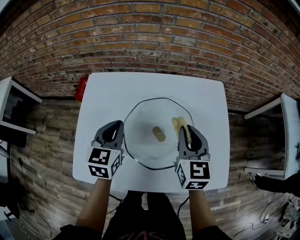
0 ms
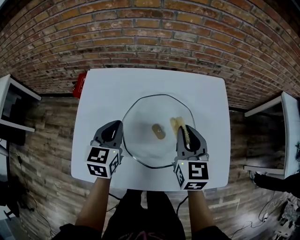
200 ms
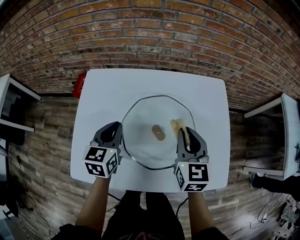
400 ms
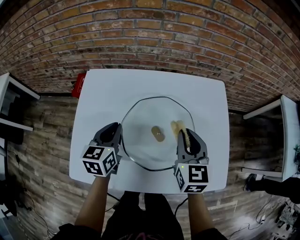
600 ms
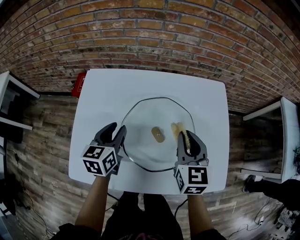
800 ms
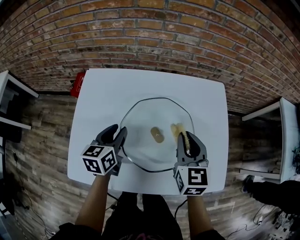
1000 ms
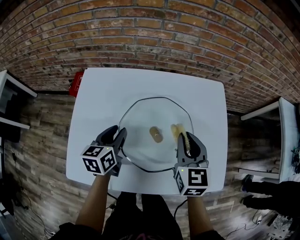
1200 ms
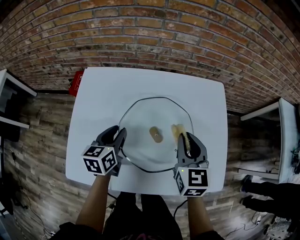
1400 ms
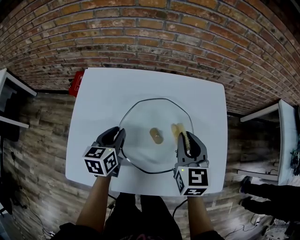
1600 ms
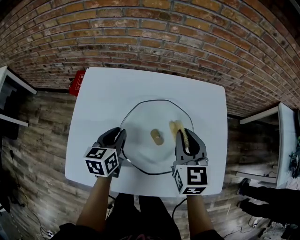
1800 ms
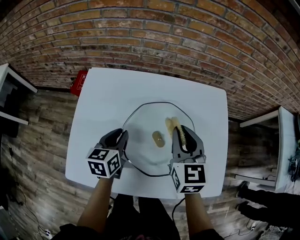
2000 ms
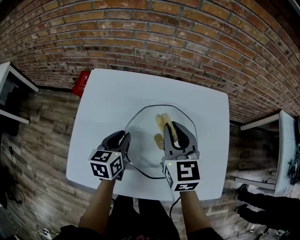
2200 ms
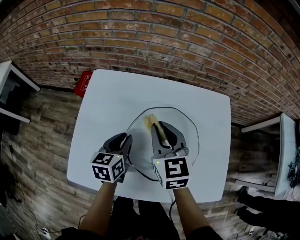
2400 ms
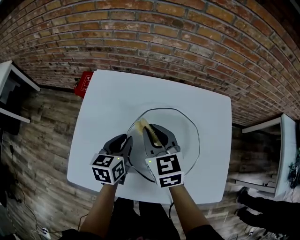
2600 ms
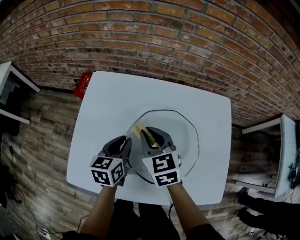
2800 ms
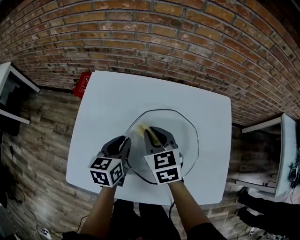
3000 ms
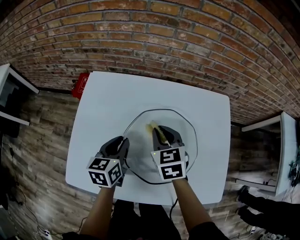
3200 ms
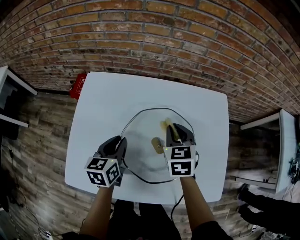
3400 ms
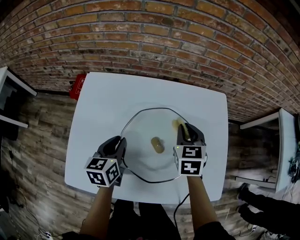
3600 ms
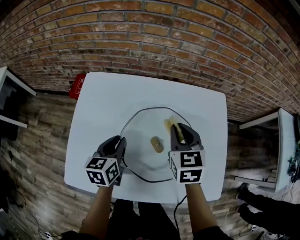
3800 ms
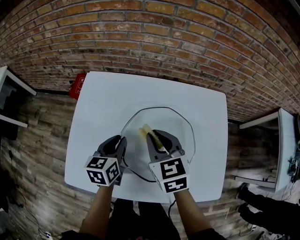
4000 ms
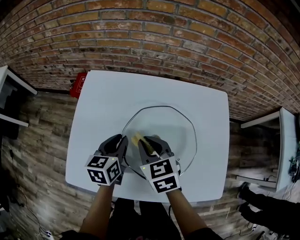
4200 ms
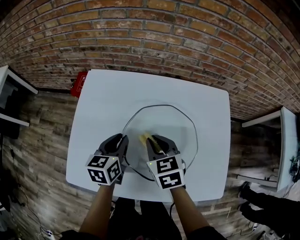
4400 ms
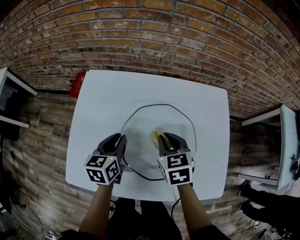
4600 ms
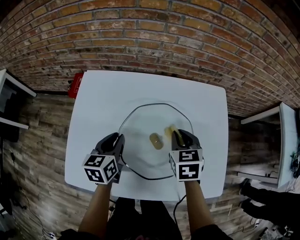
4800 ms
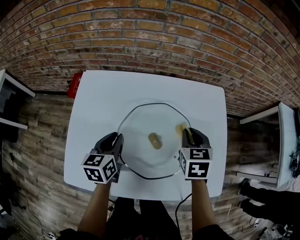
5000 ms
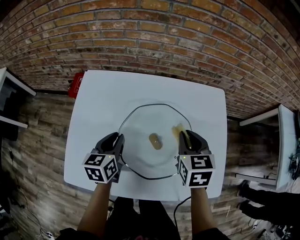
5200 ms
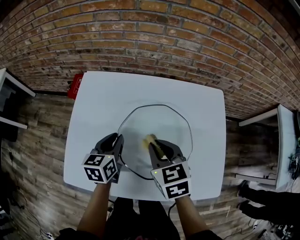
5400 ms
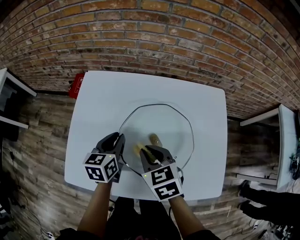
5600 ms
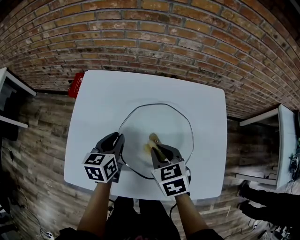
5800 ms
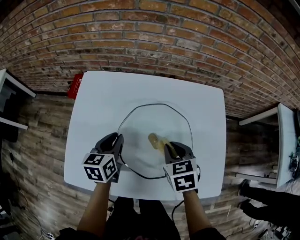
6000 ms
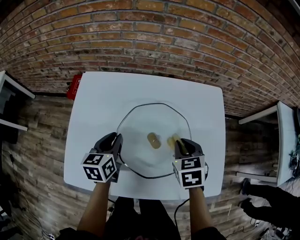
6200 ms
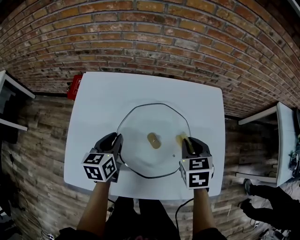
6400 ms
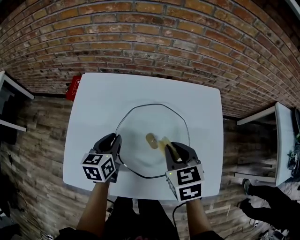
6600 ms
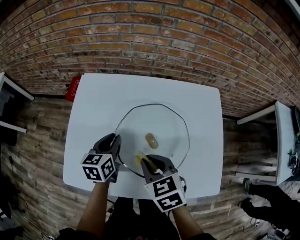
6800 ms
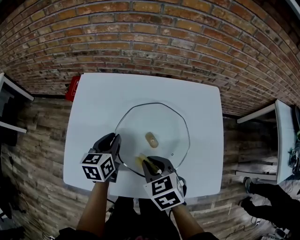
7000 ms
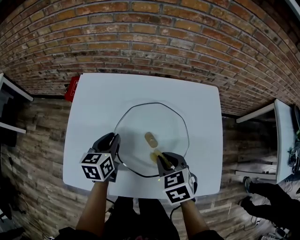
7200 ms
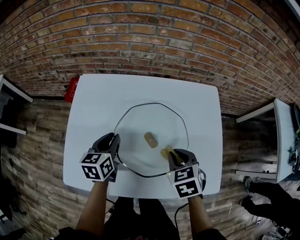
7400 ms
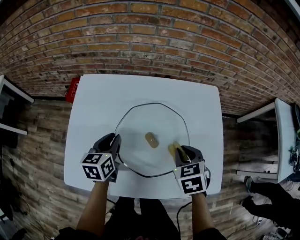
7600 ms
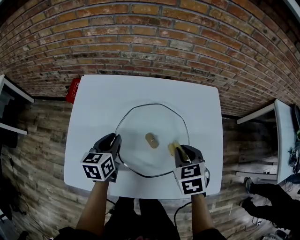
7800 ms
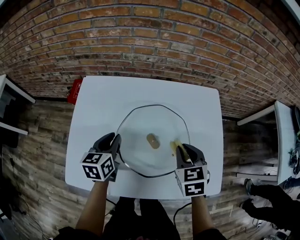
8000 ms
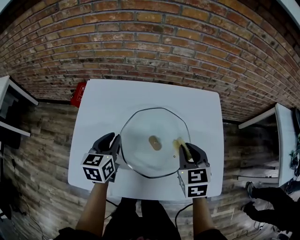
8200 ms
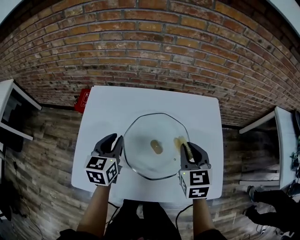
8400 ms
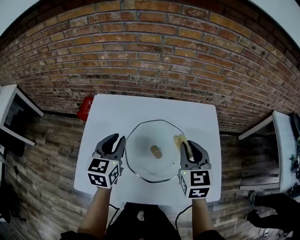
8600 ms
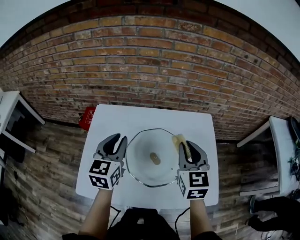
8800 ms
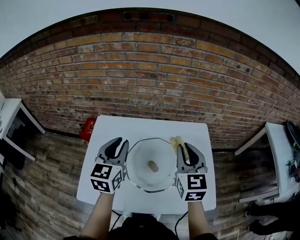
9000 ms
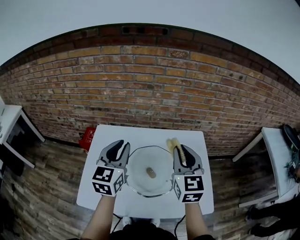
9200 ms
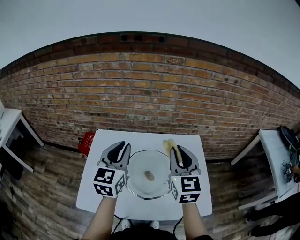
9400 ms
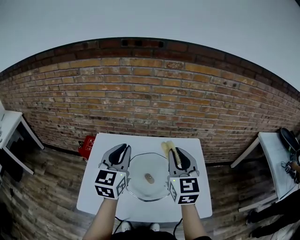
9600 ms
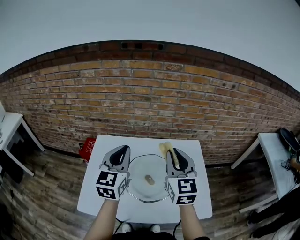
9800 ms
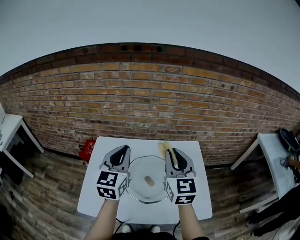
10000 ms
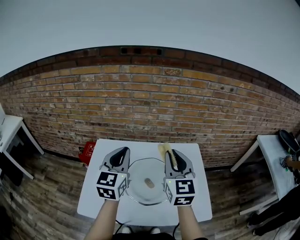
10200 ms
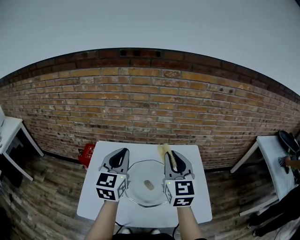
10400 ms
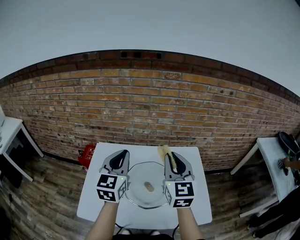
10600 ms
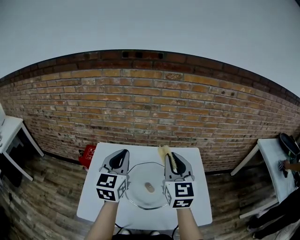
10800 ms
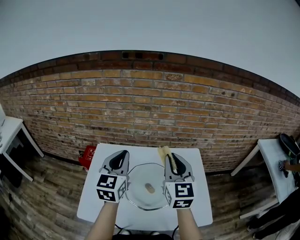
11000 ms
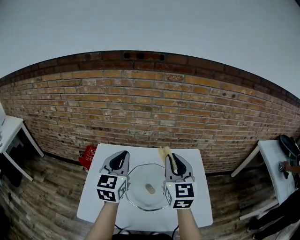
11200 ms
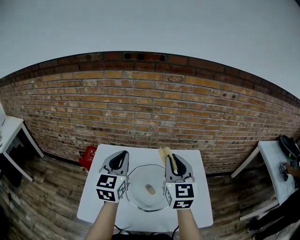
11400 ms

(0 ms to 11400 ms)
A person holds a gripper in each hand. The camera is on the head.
0 ms - 1400 ms: The left gripper travels downward by roughly 10 cm, rotates roughly 20 degrees, and opens up.
1400 ms - 2800 ms: The right gripper moves to the left, approximately 15 cm, and rotates about 30 degrees.
2800 ms - 4200 ms: The right gripper moves about 15 cm to the right and comes back.
4200 ms - 5600 ms: The right gripper goes to the right and returns, approximately 20 cm each way.
5600 ms - 7200 ms: The right gripper goes left and right, roughly 15 cm each way, reversing 2 times.
7200 ms - 8600 ms: The left gripper shifts some 15 cm upward, and rotates some 20 degrees, while the right gripper goes about 15 cm upward, forward and to the right, and angles its fingers upward, by approximately 30 degrees.
8600 ms - 10000 ms: Both grippers travel together upward, roughly 15 cm. The right gripper rotates approximately 20 degrees.
10000 ms - 11400 ms: There are only small adjustments of the grippers.

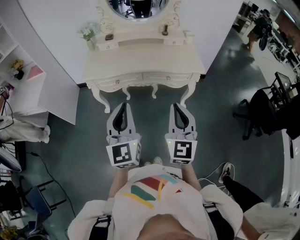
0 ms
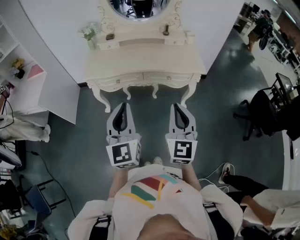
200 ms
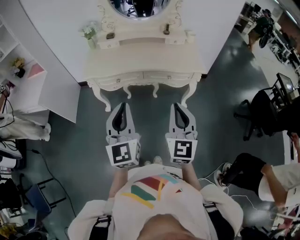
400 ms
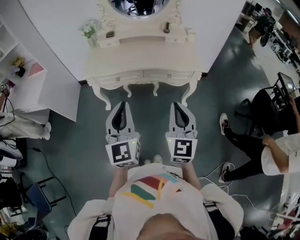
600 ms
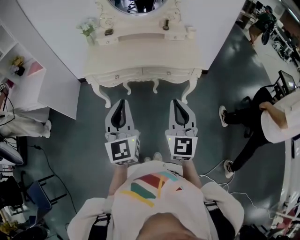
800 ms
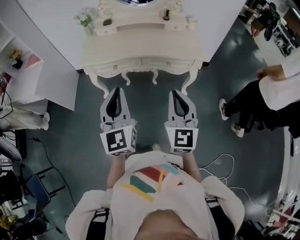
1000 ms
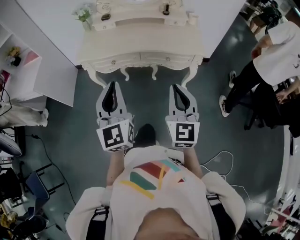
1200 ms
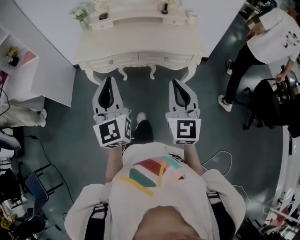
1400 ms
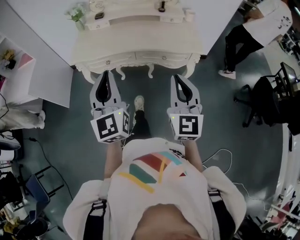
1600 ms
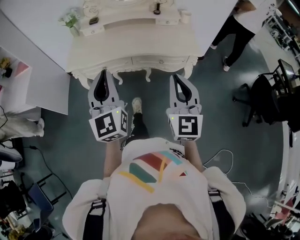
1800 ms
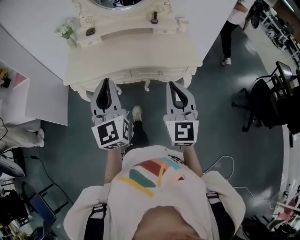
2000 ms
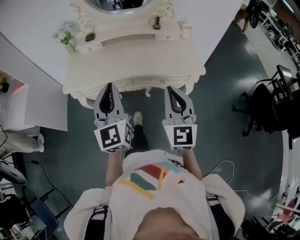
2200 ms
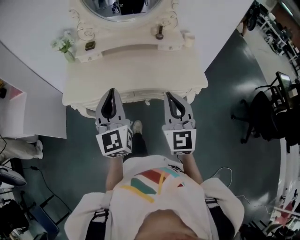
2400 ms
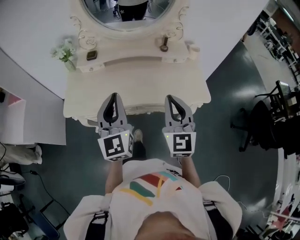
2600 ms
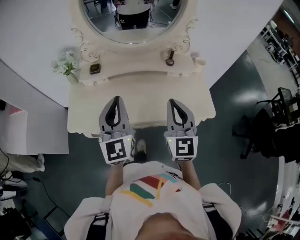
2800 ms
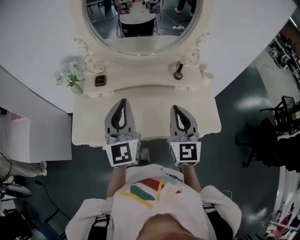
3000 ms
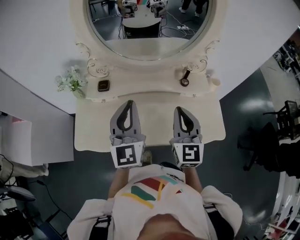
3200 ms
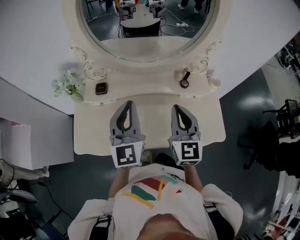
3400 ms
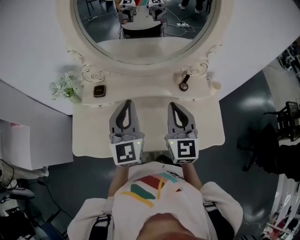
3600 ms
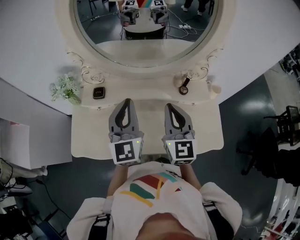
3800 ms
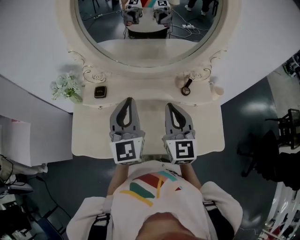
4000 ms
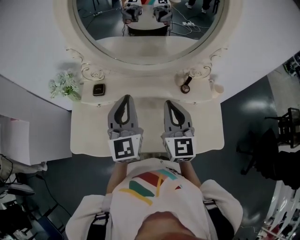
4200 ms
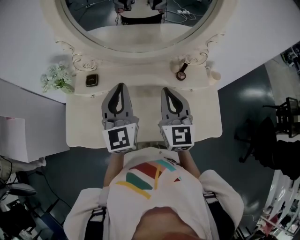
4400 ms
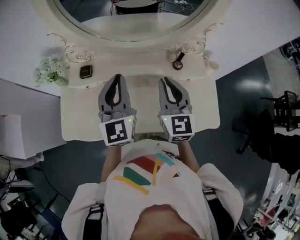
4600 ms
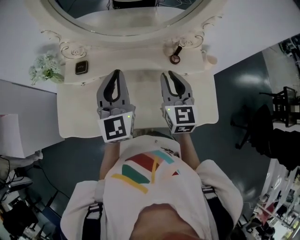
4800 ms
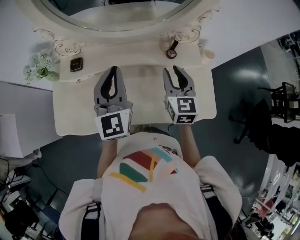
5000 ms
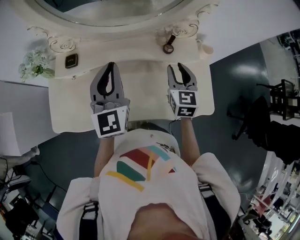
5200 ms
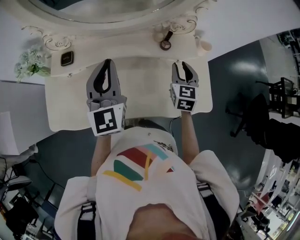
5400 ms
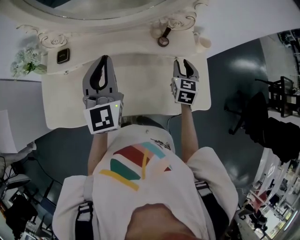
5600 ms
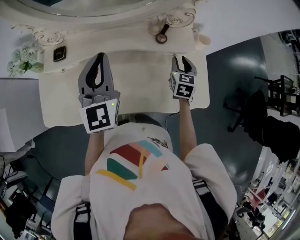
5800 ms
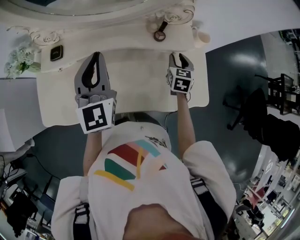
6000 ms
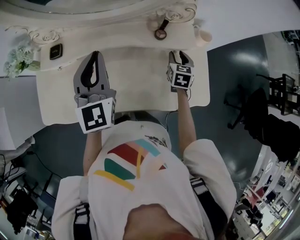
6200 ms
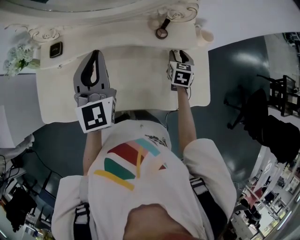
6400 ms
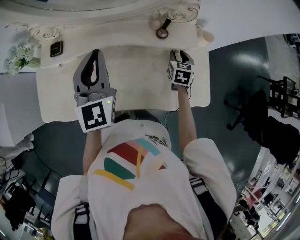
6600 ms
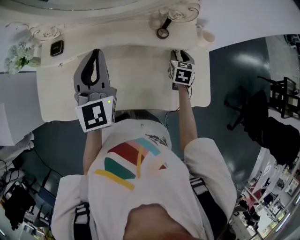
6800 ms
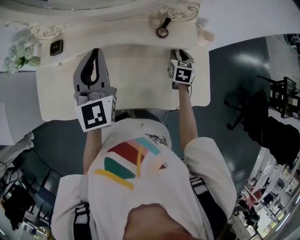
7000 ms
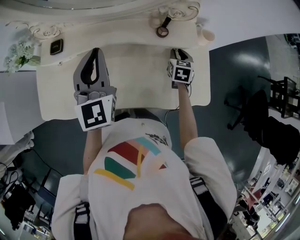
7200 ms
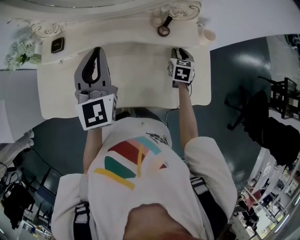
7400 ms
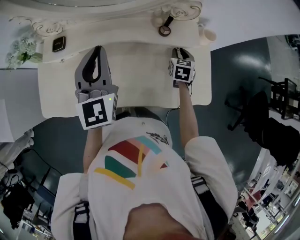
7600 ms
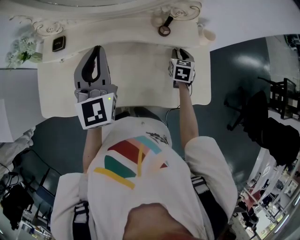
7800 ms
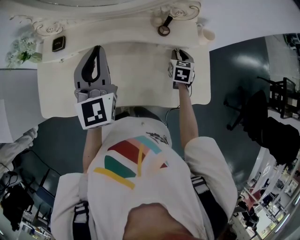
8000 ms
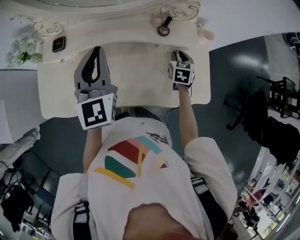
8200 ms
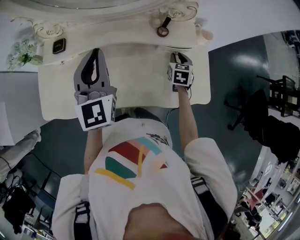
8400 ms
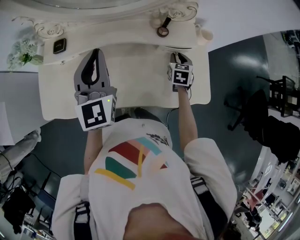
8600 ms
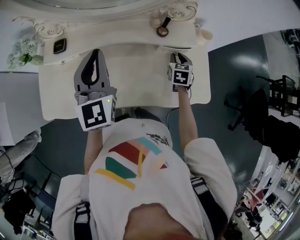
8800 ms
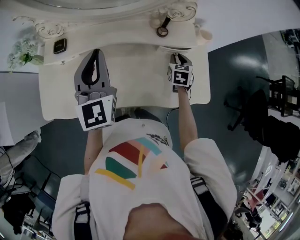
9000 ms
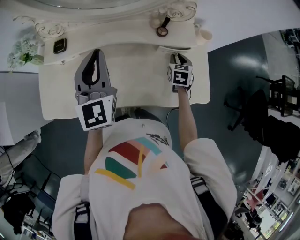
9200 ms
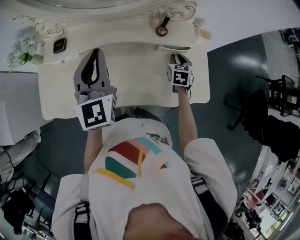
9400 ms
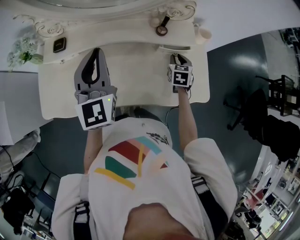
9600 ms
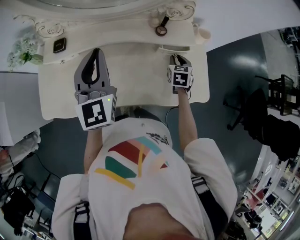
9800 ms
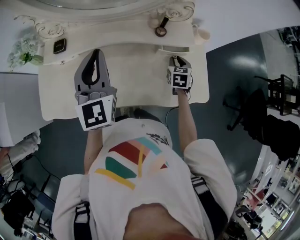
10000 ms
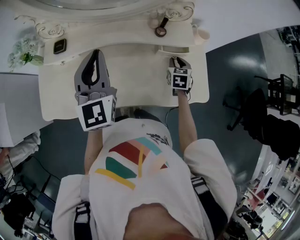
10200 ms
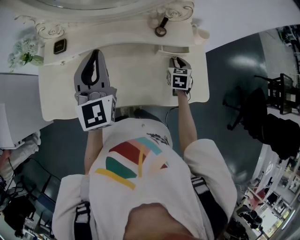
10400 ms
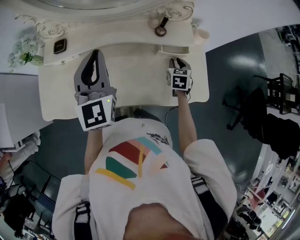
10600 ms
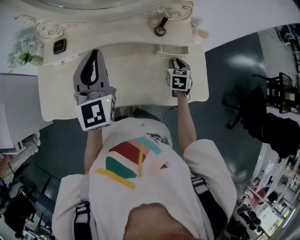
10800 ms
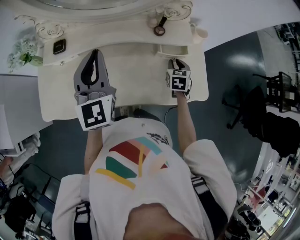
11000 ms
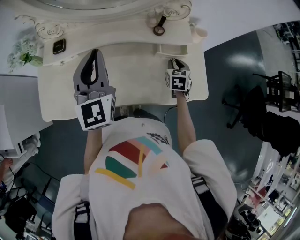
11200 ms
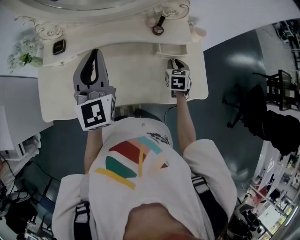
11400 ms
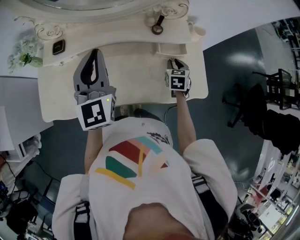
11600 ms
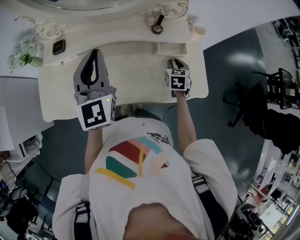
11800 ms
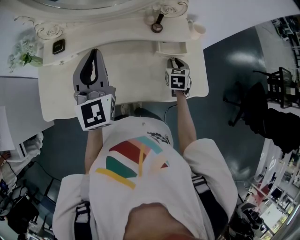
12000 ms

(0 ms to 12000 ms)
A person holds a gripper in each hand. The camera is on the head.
0 ms - 1600 ms: The left gripper shifts about 5 cm forward, while the right gripper travels forward and to the right by roughly 10 cm.
1600 ms - 3000 ms: The pair of grippers is taken forward, some 40 cm.
3000 ms - 4400 ms: Both grippers travel together forward, about 15 cm.
4400 ms - 6000 ms: The left gripper moves to the right, approximately 5 cm; the right gripper heads downward and to the right, covering about 30 cm, angles its fingers downward, by about 30 degrees, and opens.
6000 ms - 10400 ms: There are only small adjustments of the grippers.
10400 ms - 12000 ms: The grippers stay close to where they were, moving slightly.

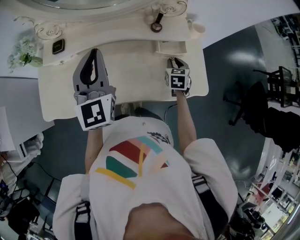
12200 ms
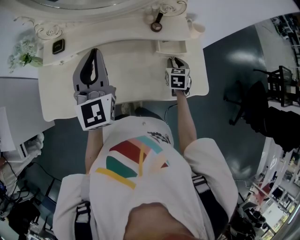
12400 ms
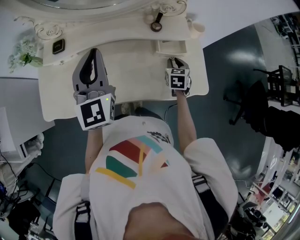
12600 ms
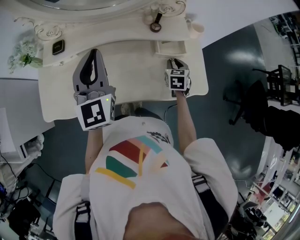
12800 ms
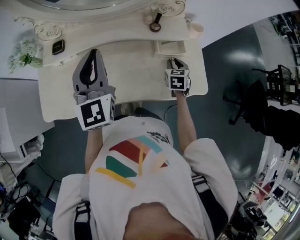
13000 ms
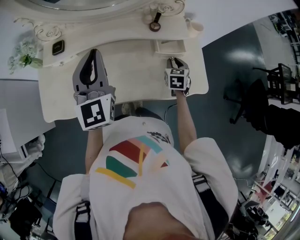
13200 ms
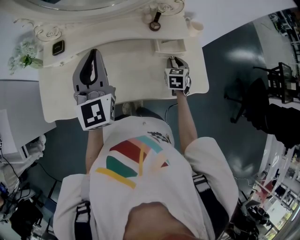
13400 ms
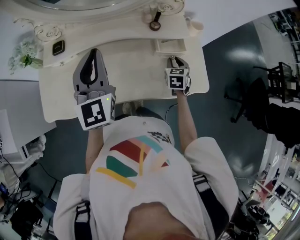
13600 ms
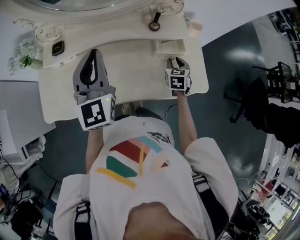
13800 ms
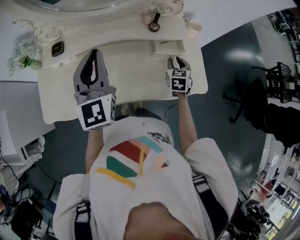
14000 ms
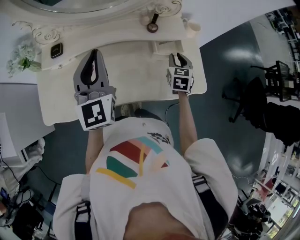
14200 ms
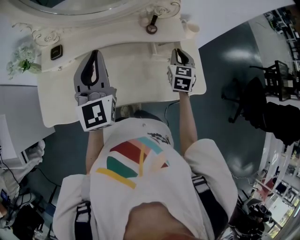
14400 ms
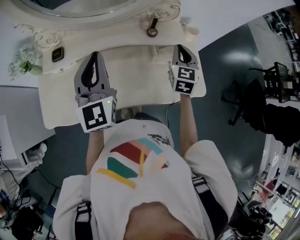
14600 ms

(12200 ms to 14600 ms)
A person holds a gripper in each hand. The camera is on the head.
12200 ms - 13400 ms: Both grippers stay put.
13400 ms - 14600 ms: The right gripper is displaced upward by about 15 cm, and changes its angle by some 20 degrees.
